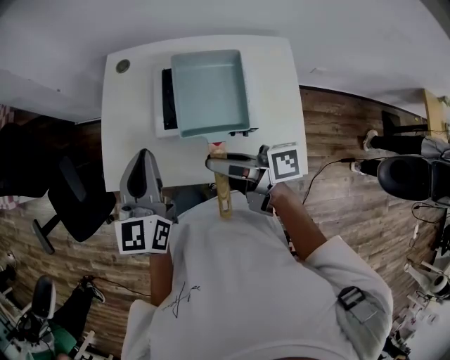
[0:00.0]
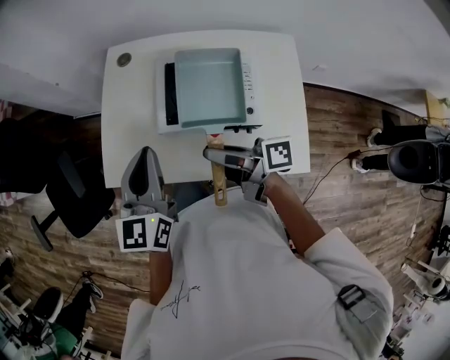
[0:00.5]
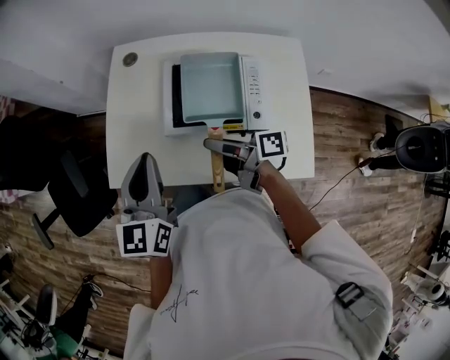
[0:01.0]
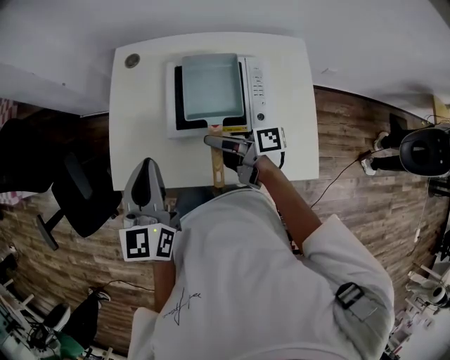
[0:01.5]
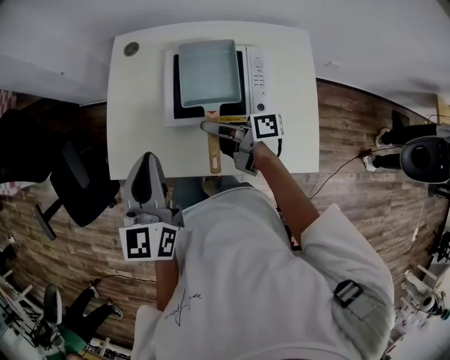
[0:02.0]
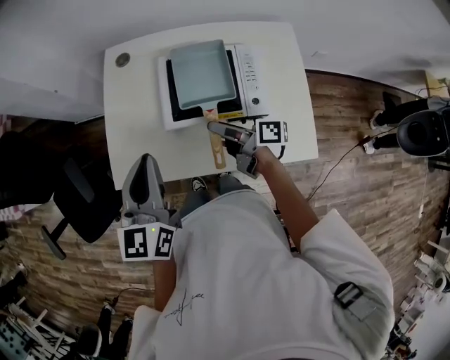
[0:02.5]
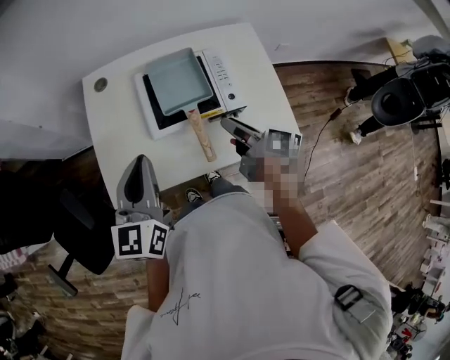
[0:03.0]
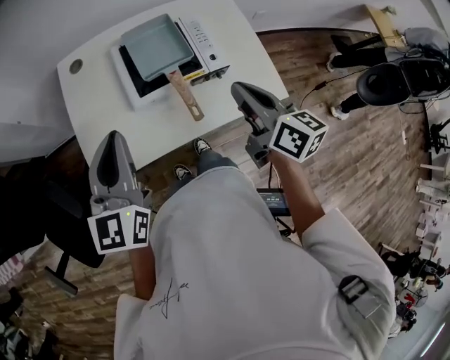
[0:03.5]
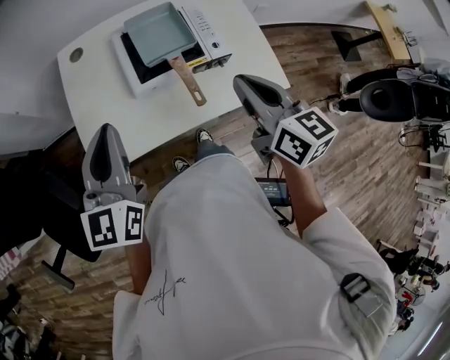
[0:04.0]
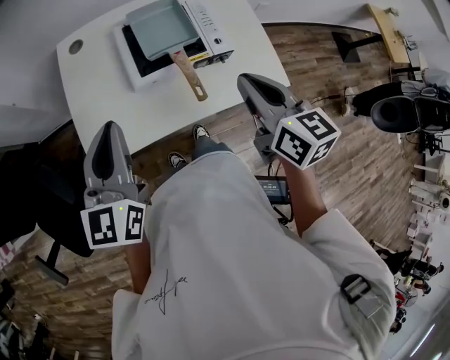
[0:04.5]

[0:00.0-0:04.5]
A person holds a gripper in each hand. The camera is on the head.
0:00.0 to 0:02.0: The right gripper moves downward and forward, about 15 cm.
0:02.0 to 0:04.5: The left gripper shifts by about 10 cm, and turns by roughly 20 degrees. Meanwhile the right gripper shifts about 20 cm upward, turns by roughly 70 degrees, and closes up.

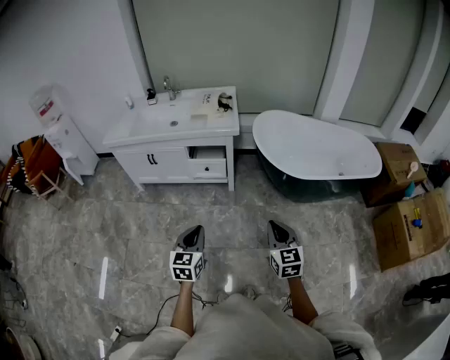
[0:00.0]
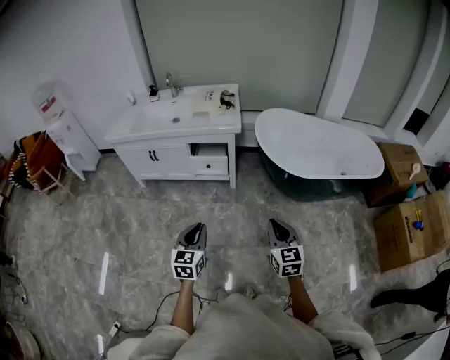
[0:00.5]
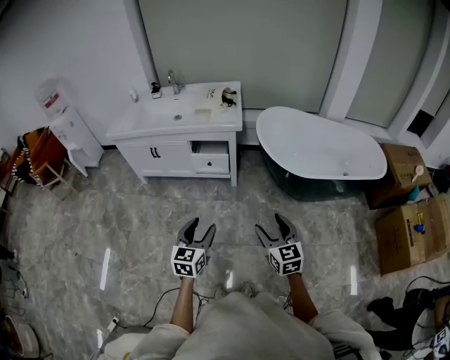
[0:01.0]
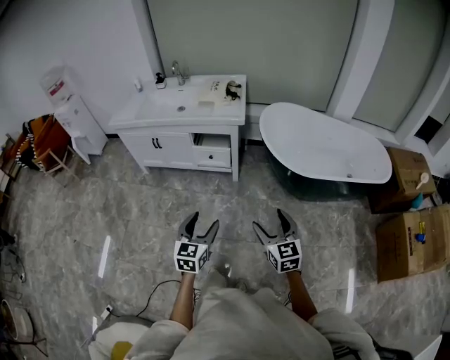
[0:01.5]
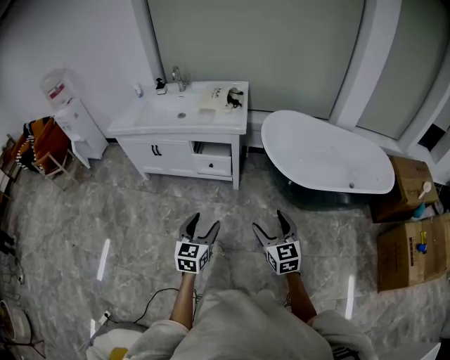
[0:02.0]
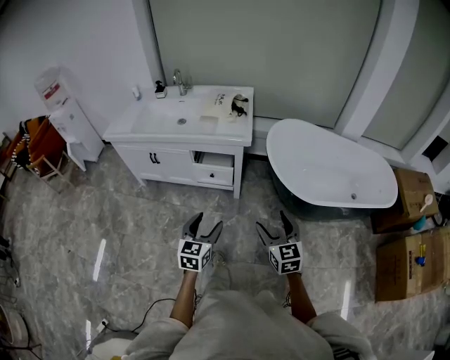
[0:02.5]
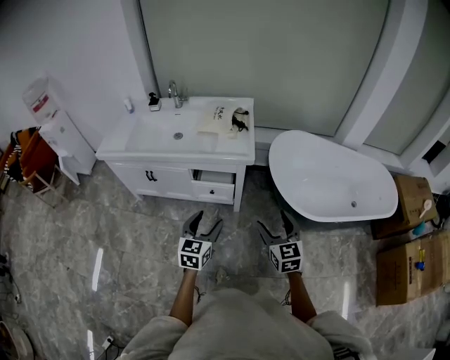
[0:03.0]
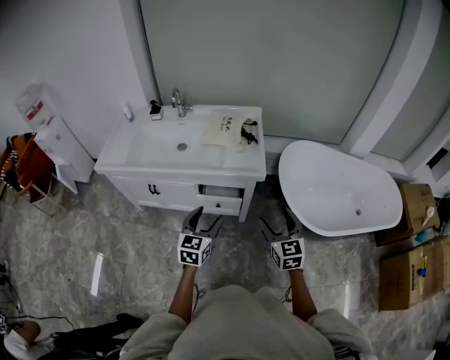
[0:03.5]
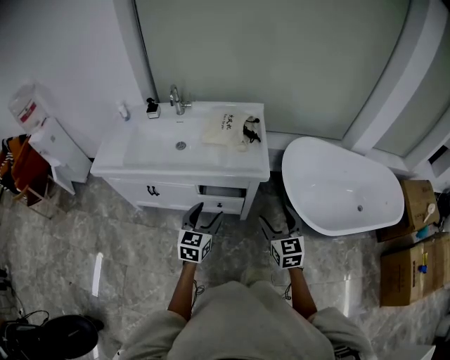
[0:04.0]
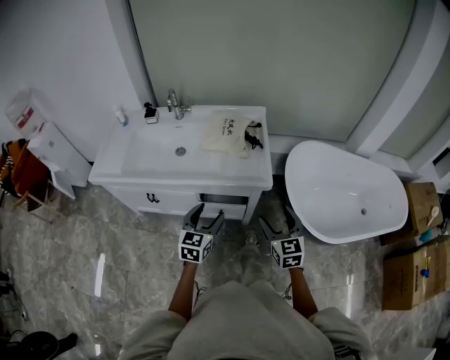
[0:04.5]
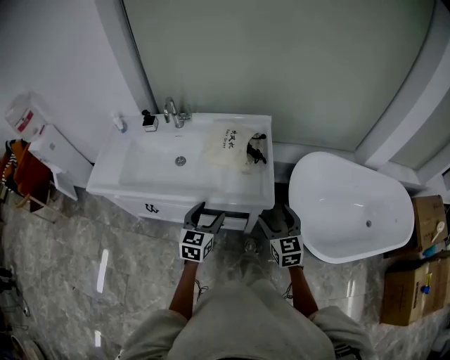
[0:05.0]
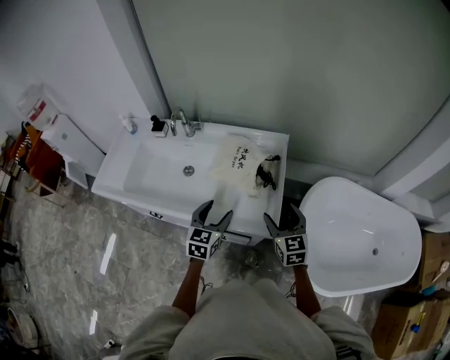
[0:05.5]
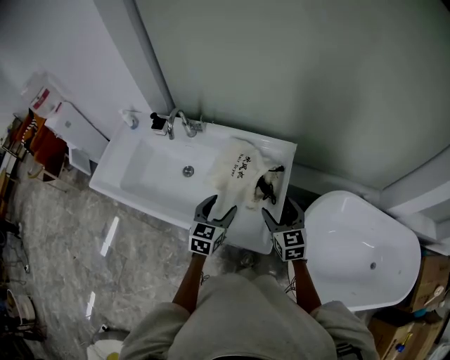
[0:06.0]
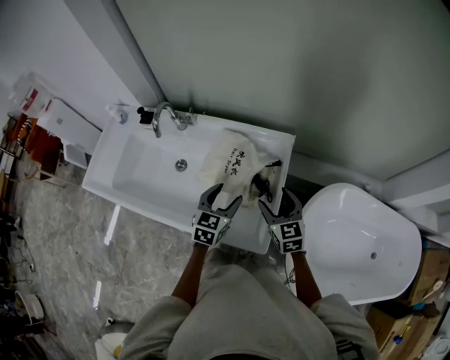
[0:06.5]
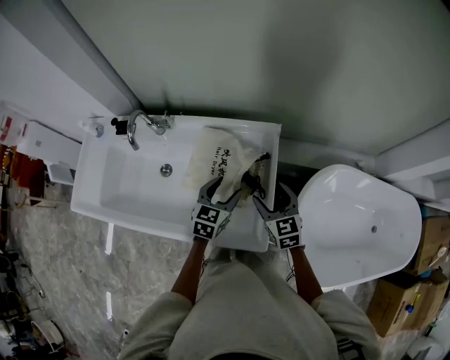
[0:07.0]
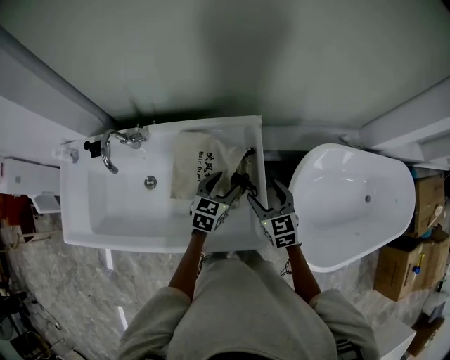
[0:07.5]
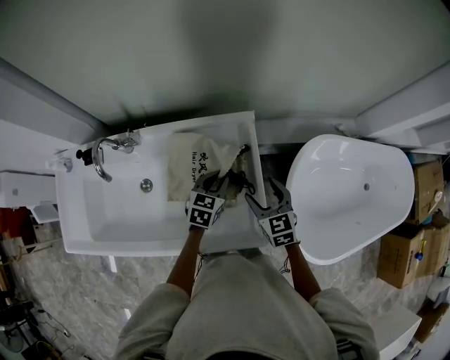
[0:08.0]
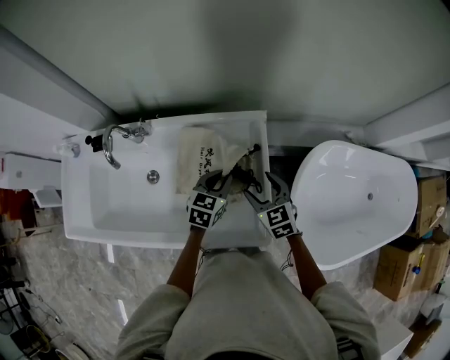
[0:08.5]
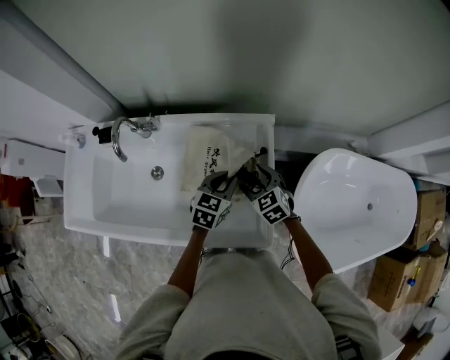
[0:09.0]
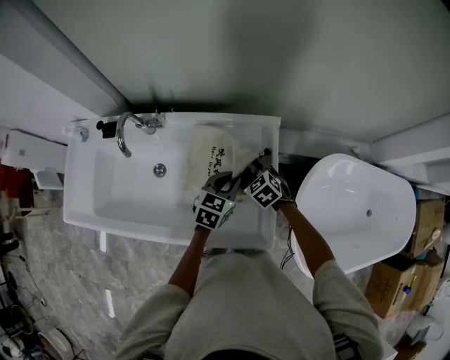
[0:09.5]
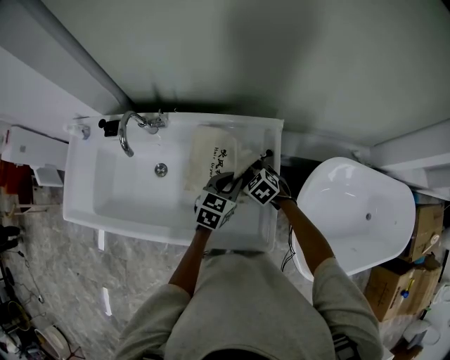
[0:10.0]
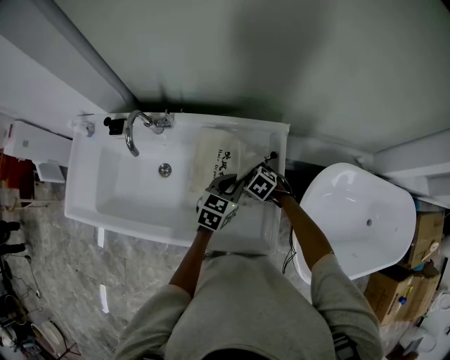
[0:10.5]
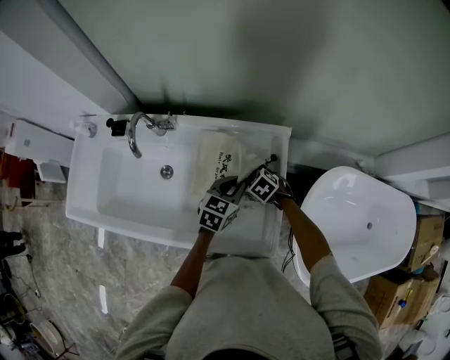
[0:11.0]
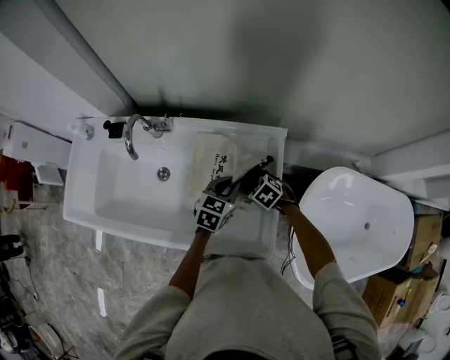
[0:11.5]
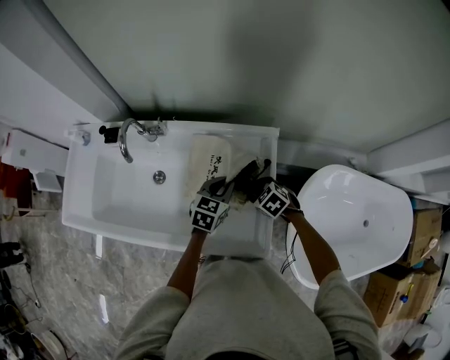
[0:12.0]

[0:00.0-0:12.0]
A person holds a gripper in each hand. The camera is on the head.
0:00.0 to 0:02.0: The right gripper heads forward, covering about 10 cm, and opens up, while the left gripper travels to the right and forward by about 10 cm, and opens.
0:02.0 to 0:04.0: The two grippers travel together, forward, some 40 cm.
0:04.0 to 0:06.0: Both grippers travel together forward, about 40 cm.
0:06.0 to 0:08.0: The right gripper travels downward and forward by about 10 cm; the left gripper moves forward, downward and to the right, roughly 20 cm, changes its angle by about 30 degrees, and closes.
0:08.0 to 0:10.0: The right gripper shifts approximately 15 cm downward, to the left and forward, and swivels about 40 degrees.
0:10.0 to 0:12.0: The right gripper changes place by approximately 5 cm.

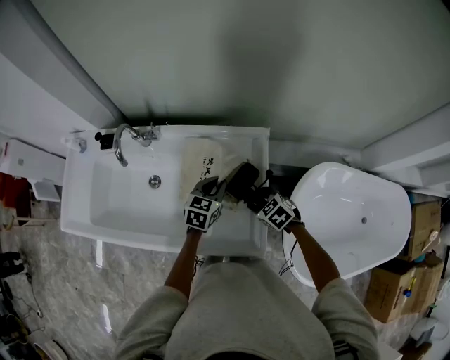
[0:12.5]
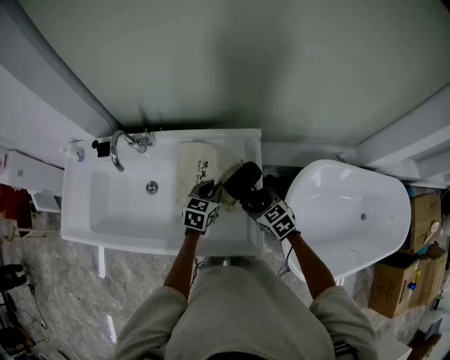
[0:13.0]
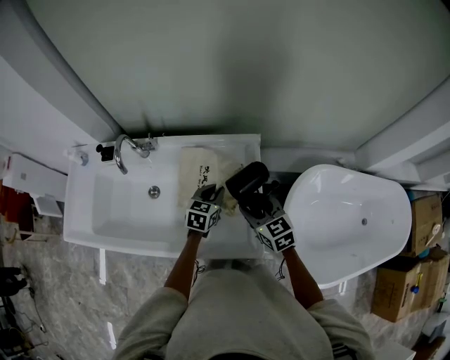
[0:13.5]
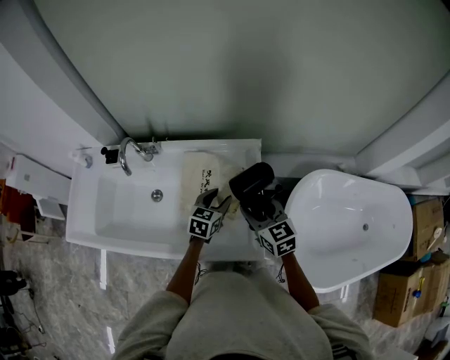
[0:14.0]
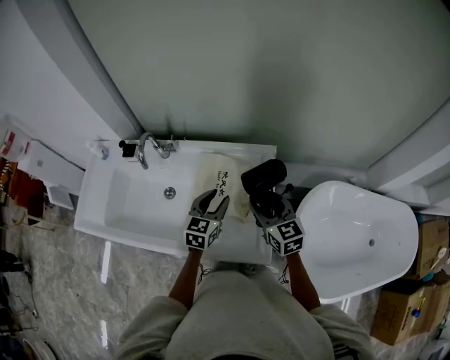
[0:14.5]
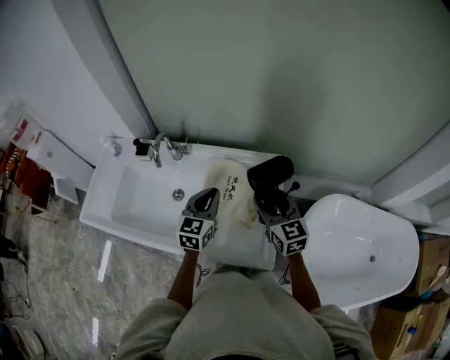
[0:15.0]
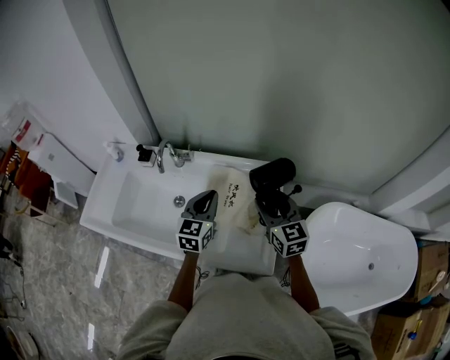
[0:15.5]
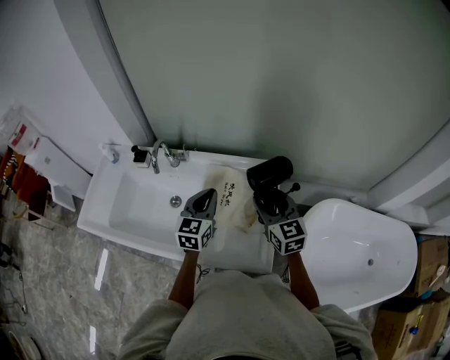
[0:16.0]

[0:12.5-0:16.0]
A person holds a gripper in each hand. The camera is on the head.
0:12.5 to 0:14.5: The right gripper shifts some 20 cm upward, and angles its fingers upward, by approximately 40 degrees. The left gripper travels upward by approximately 10 cm, and opens up.
0:14.5 to 0:16.0: The two grippers go approximately 5 cm upward. The left gripper closes up.

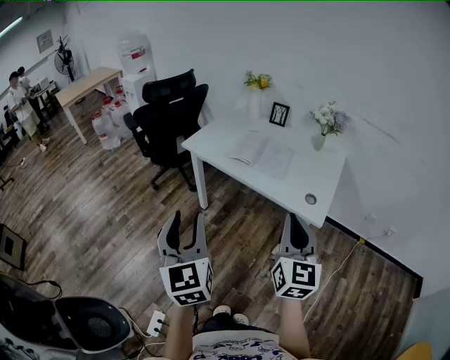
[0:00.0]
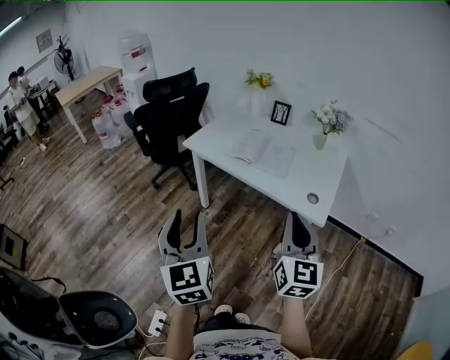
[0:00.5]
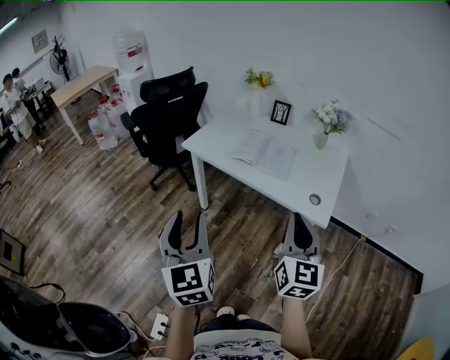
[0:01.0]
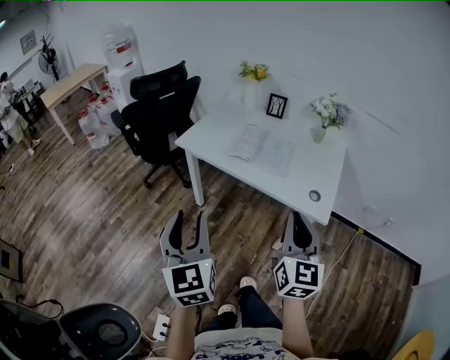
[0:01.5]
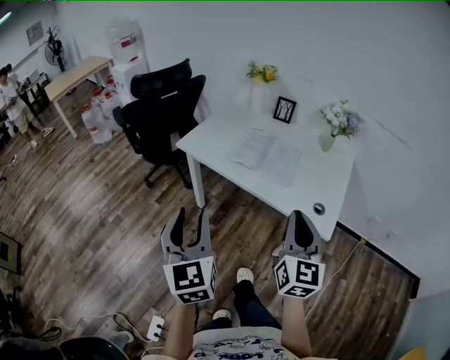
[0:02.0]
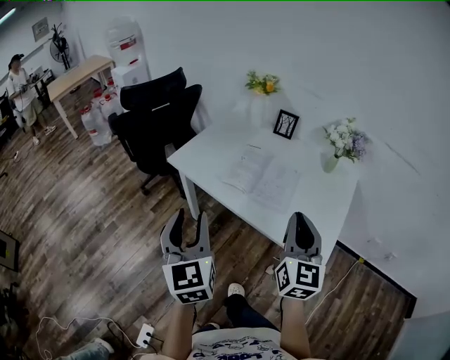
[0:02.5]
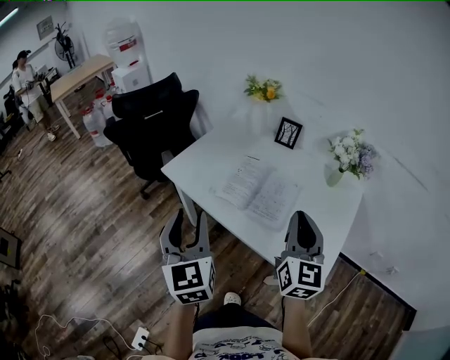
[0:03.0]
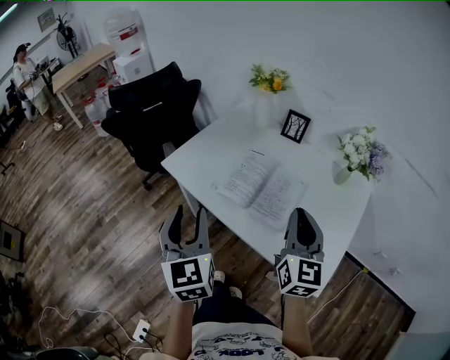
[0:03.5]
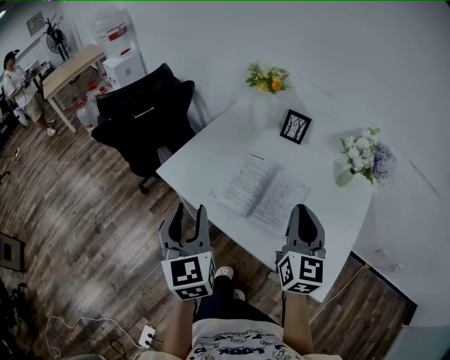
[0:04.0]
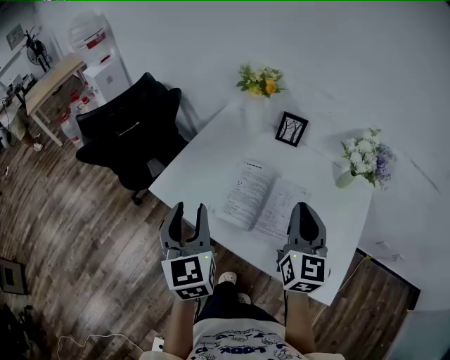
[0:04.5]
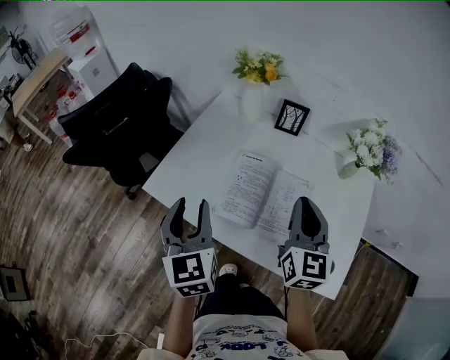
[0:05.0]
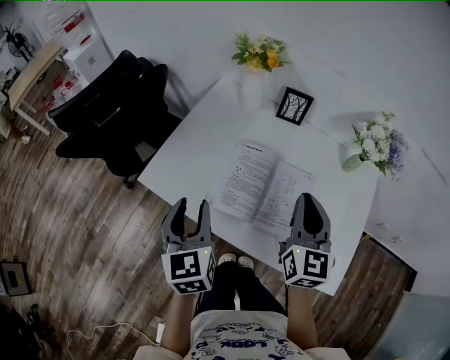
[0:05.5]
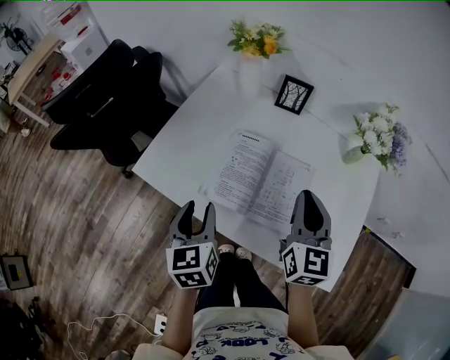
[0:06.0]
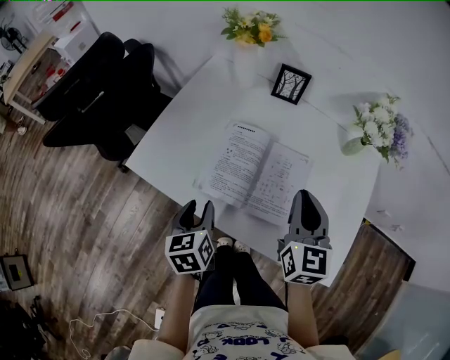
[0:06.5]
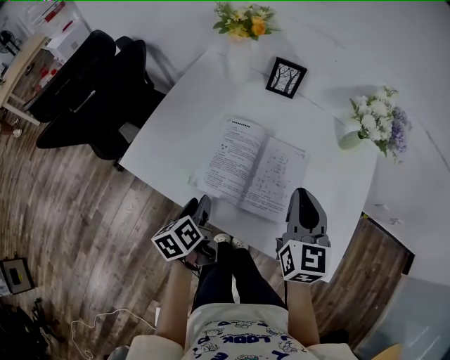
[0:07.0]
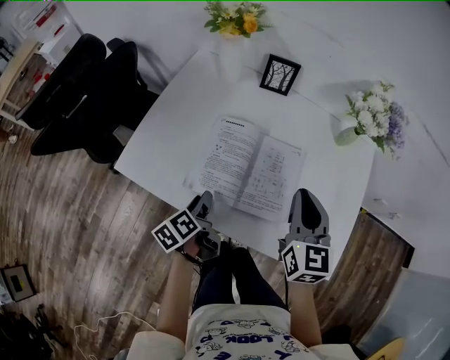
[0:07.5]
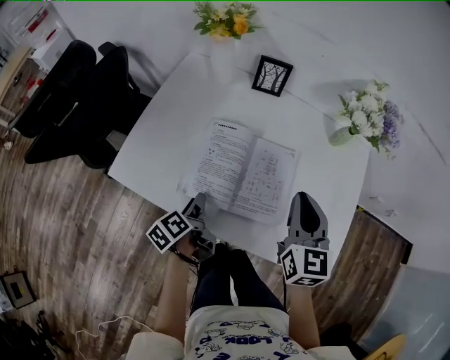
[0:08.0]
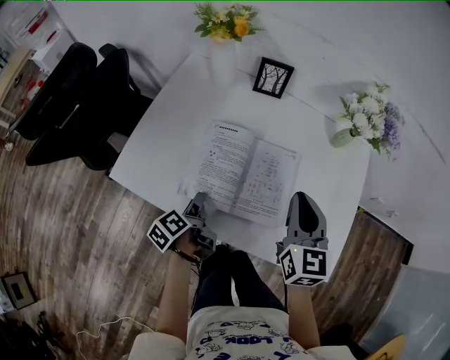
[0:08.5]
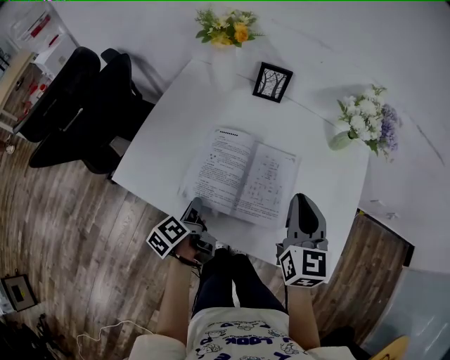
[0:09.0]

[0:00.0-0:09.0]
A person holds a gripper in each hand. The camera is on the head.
0:00.0 to 0:02.0: The grippers both shift forward by approximately 10 cm.
0:02.0 to 0:04.5: Both grippers move forward, some 35 cm.
0:04.5 to 0:07.0: The left gripper travels downward by roughly 25 cm, and turns by approximately 50 degrees, while the right gripper goes roughly 10 cm downward.
0:07.0 to 0:09.0: The left gripper rotates roughly 20 degrees, and closes up.
